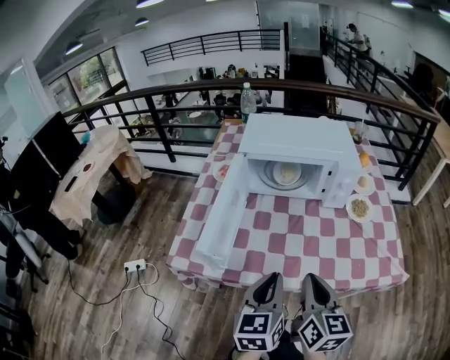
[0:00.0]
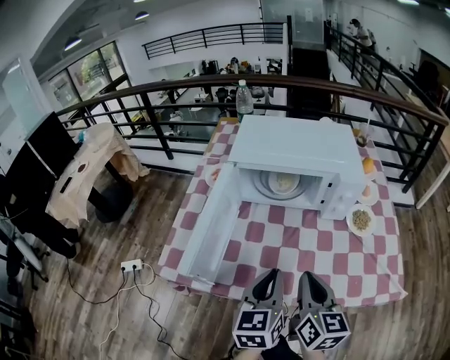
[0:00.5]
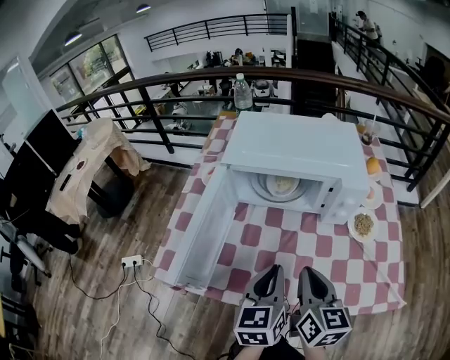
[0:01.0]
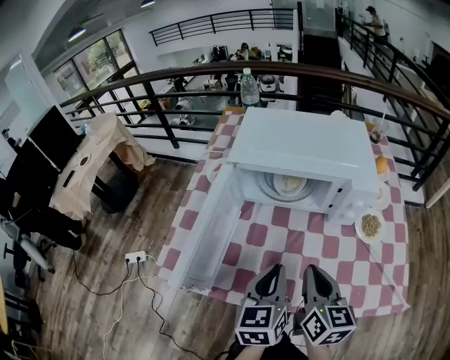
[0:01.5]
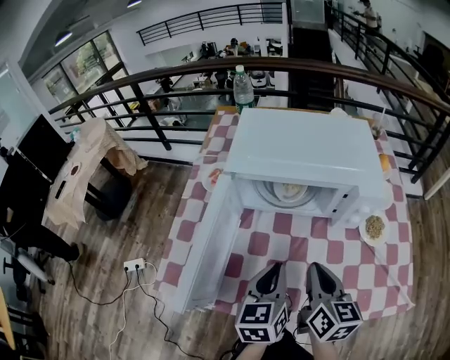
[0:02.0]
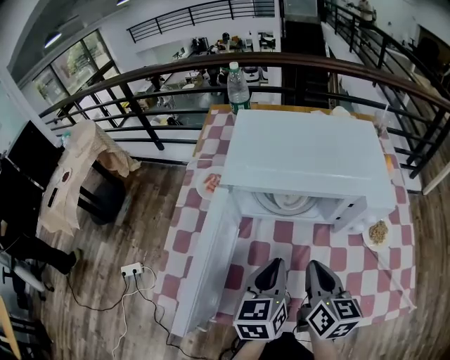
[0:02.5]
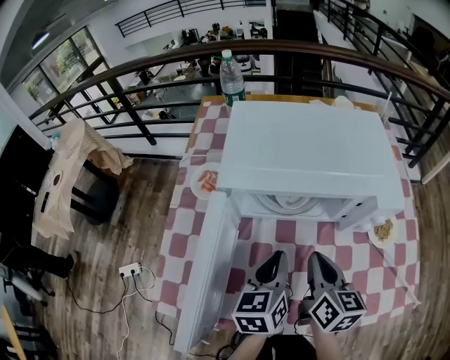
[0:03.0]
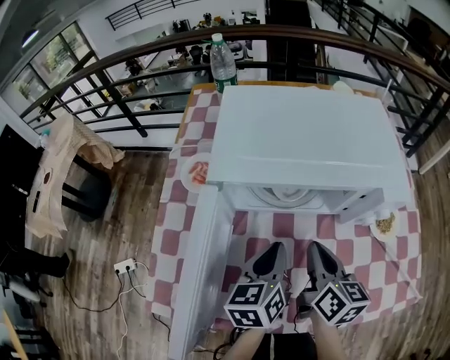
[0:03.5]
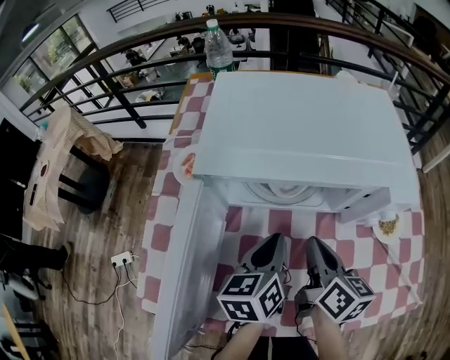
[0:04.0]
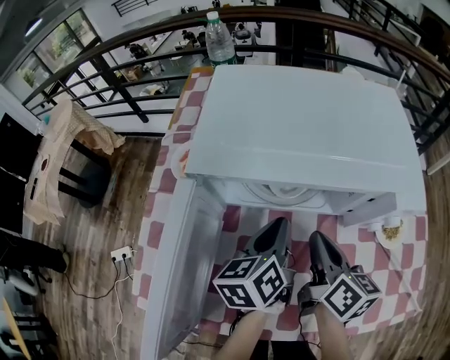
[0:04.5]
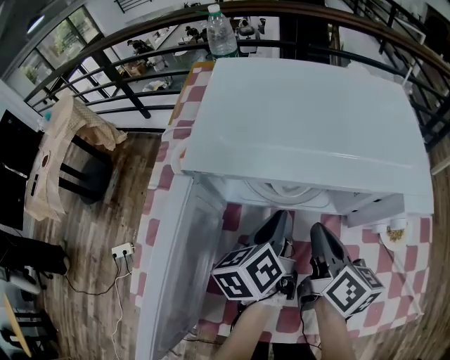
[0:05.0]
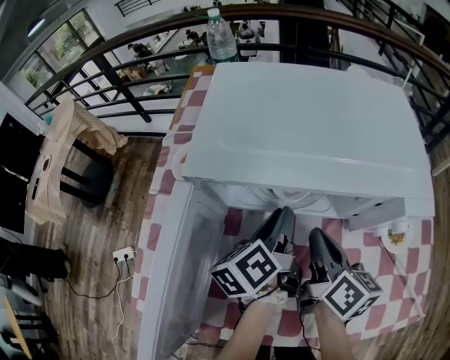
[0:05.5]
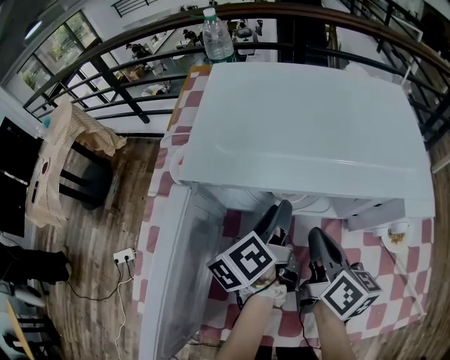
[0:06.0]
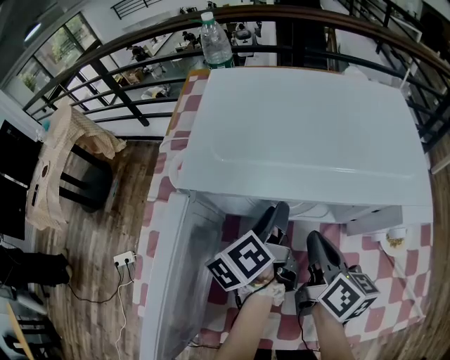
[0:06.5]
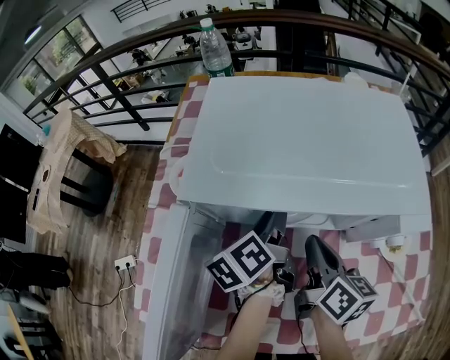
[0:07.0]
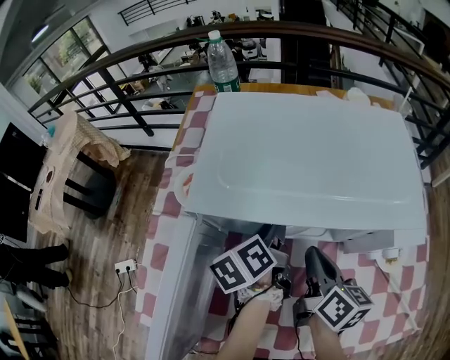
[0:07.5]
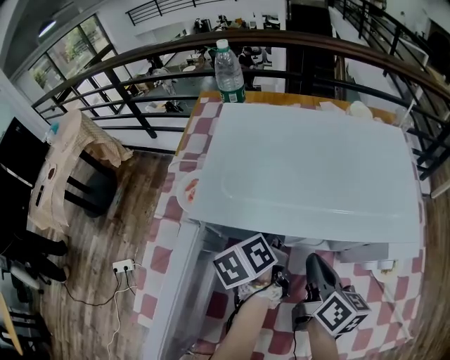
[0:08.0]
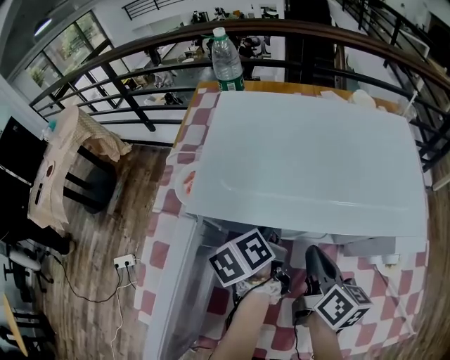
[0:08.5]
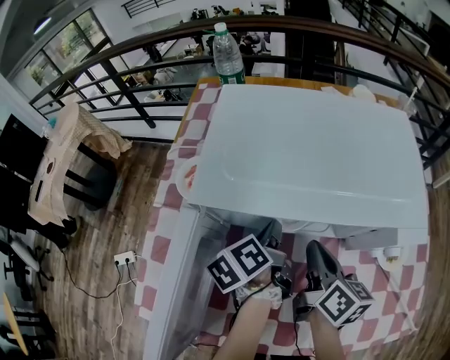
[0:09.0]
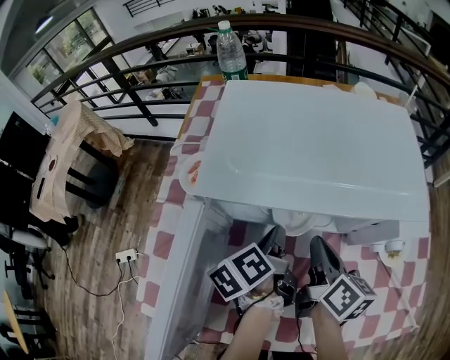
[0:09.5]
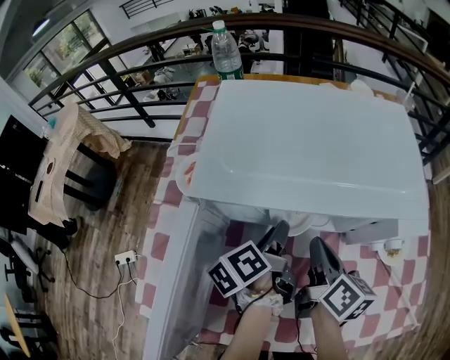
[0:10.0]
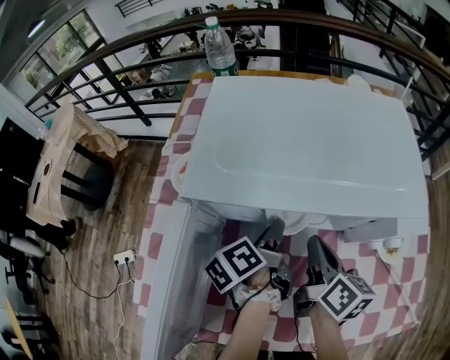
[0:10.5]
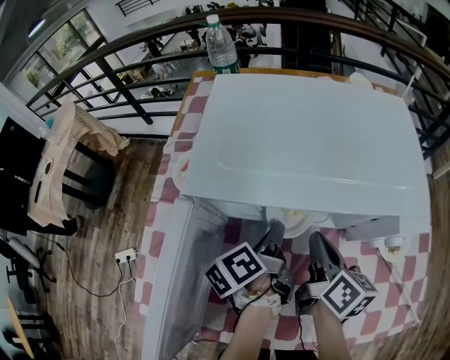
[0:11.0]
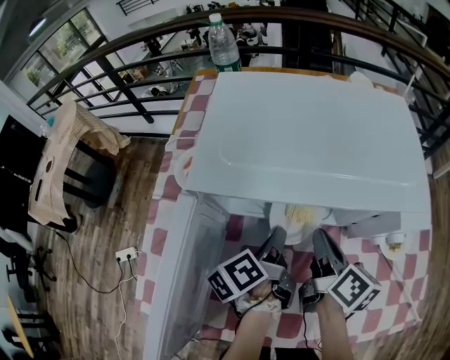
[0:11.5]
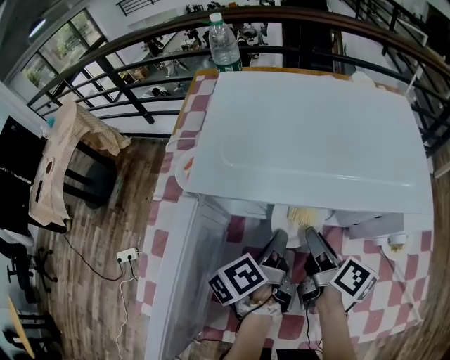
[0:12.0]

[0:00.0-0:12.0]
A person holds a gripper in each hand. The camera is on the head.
0:00.0 to 0:02.0: The two grippers go about 20 cm forward.
0:02.0 to 0:04.0: The two grippers go roughly 15 cm forward and downward.
0:04.0 to 0:06.0: The left gripper heads forward, covering some 10 cm, turns by approximately 30 degrees, and opens its fingers.
0:06.0 to 0:08.0: There are only small adjustments of the grippers.
0:08.0 to 0:10.0: The left gripper is displaced backward by some 5 cm, and closes, then opens again.
0:10.0 to 0:12.0: The left gripper closes, while the right gripper opens up.

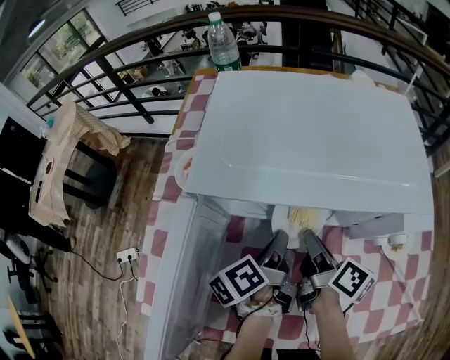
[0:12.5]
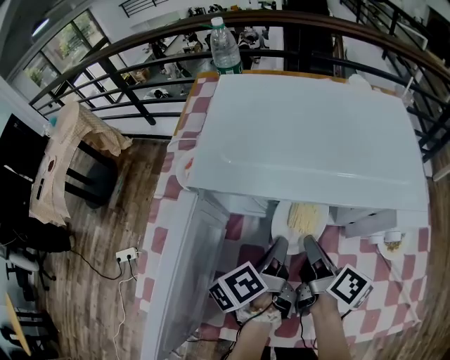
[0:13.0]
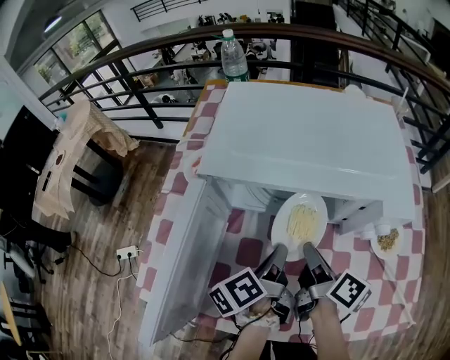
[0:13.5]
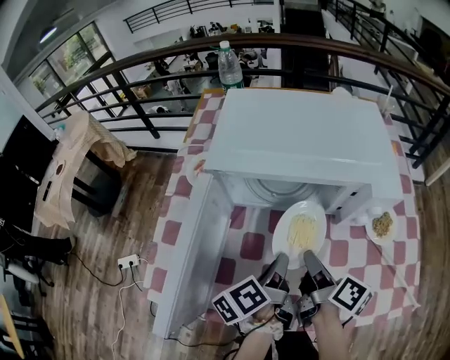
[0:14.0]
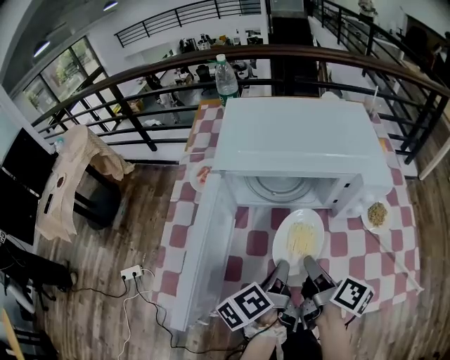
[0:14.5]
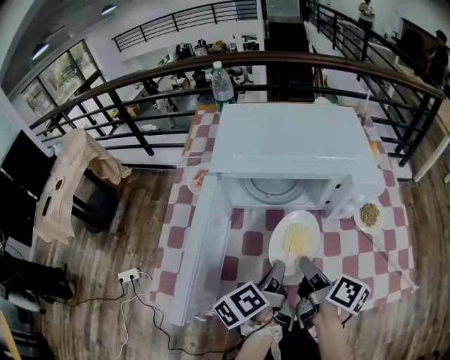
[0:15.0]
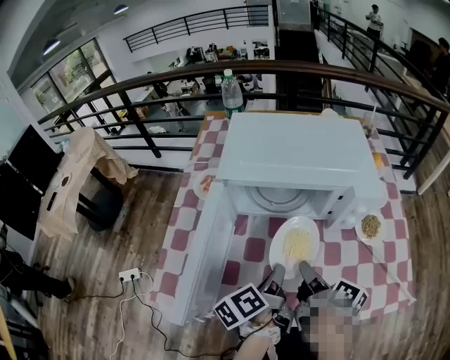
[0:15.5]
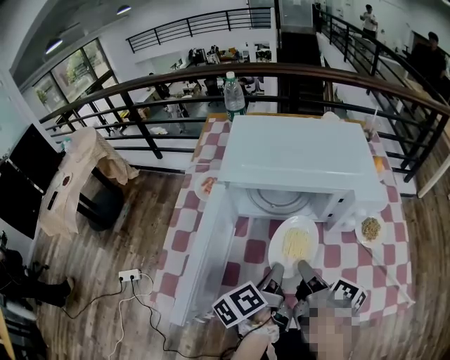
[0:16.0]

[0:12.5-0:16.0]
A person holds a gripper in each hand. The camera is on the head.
0:12.5 to 0:14.5: The two grippers go some 15 cm backward.
0:14.5 to 0:16.0: There are only small adjustments of the grippers.

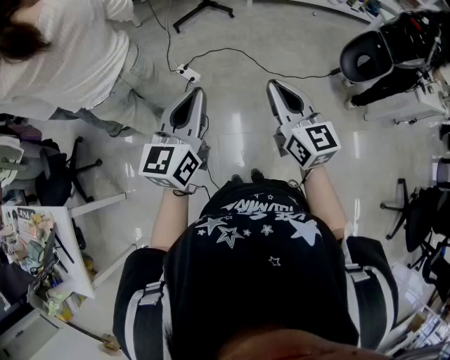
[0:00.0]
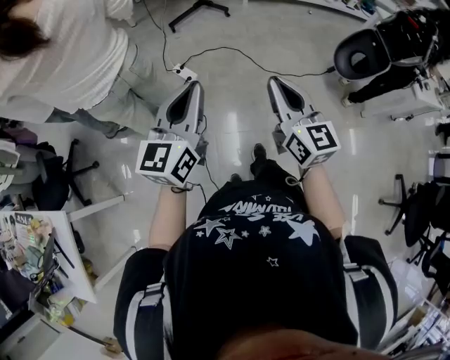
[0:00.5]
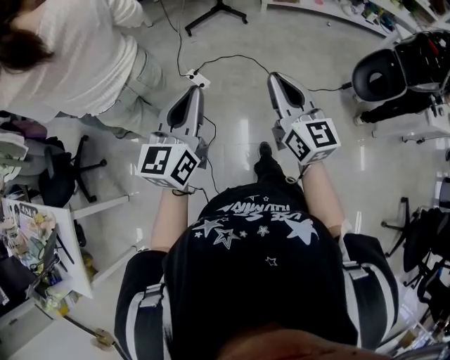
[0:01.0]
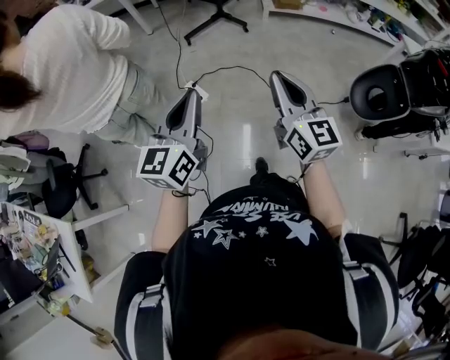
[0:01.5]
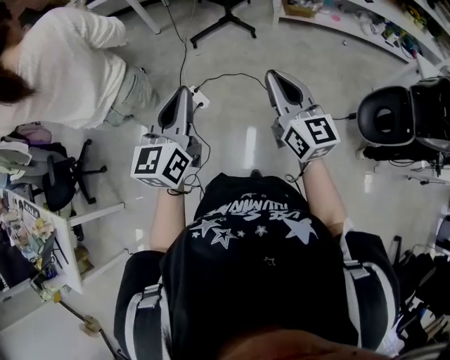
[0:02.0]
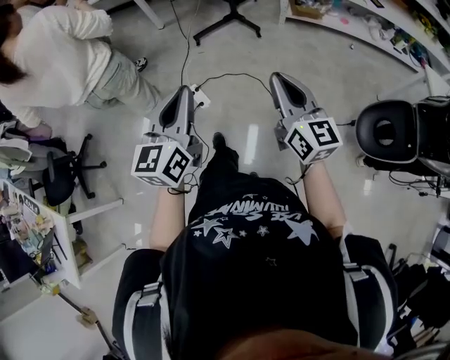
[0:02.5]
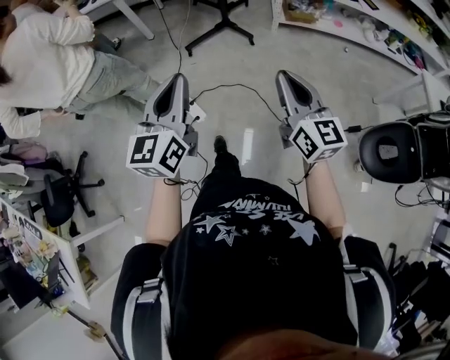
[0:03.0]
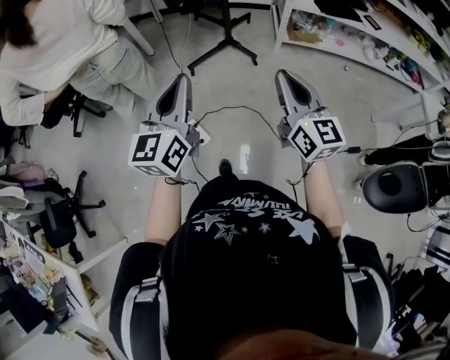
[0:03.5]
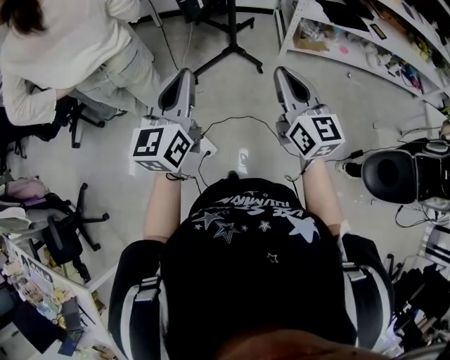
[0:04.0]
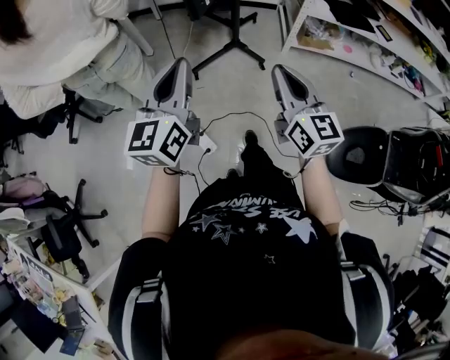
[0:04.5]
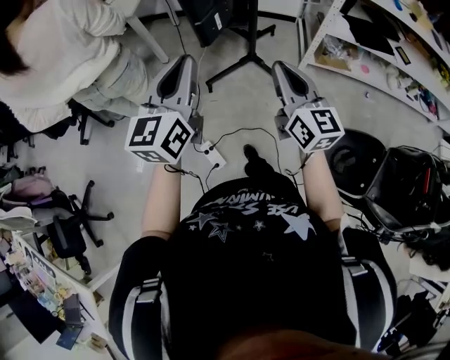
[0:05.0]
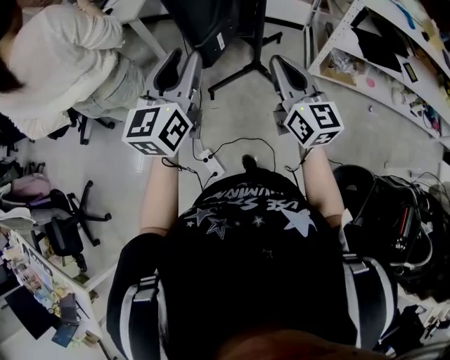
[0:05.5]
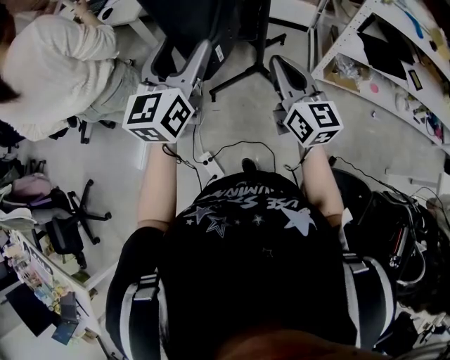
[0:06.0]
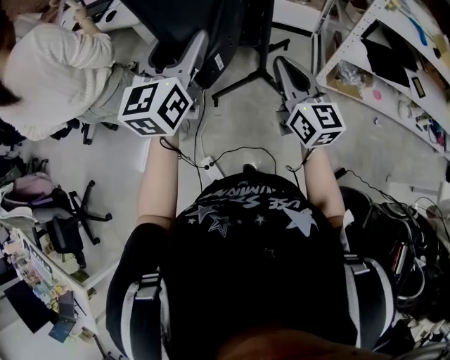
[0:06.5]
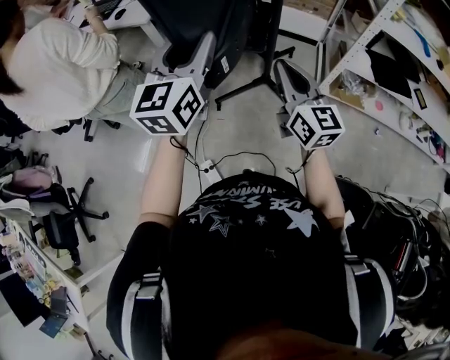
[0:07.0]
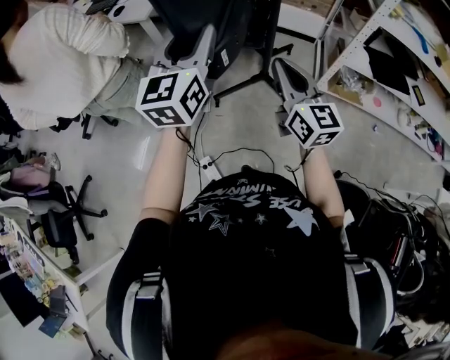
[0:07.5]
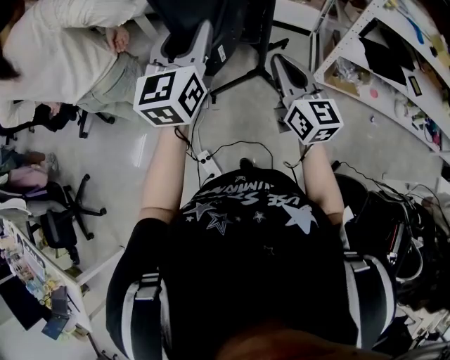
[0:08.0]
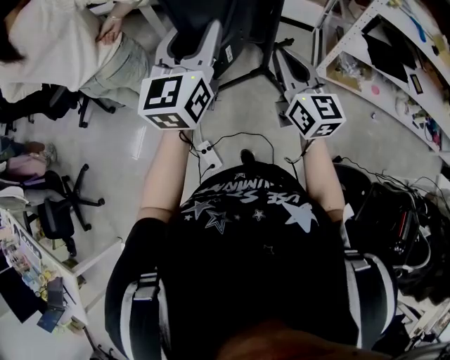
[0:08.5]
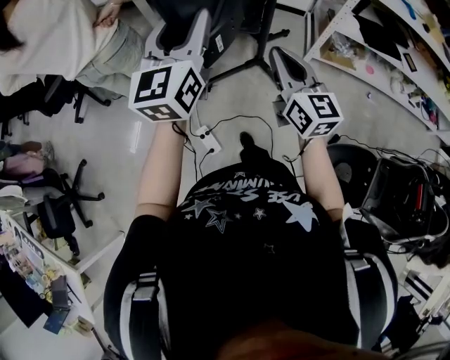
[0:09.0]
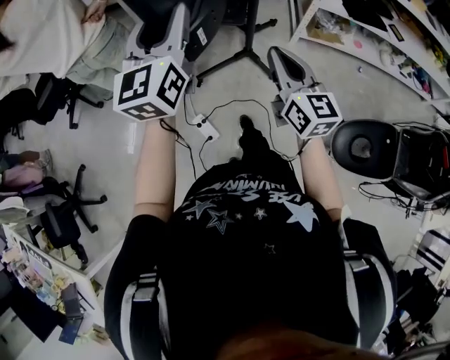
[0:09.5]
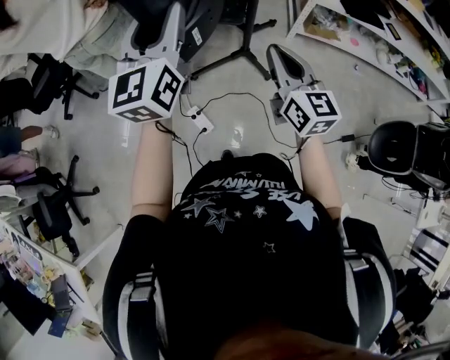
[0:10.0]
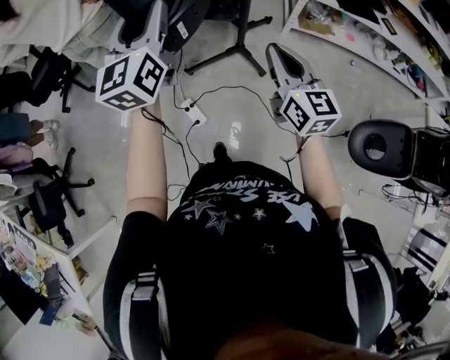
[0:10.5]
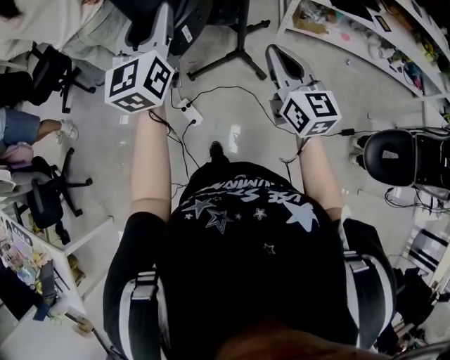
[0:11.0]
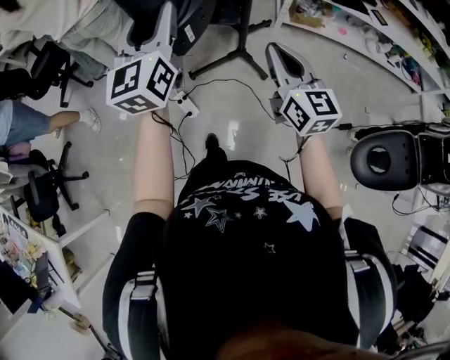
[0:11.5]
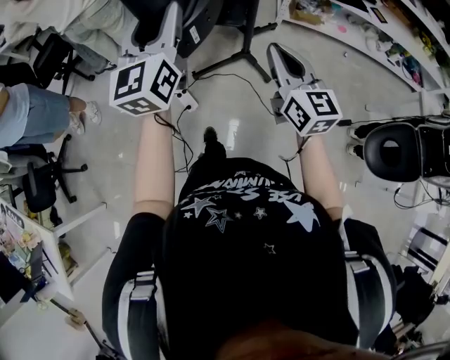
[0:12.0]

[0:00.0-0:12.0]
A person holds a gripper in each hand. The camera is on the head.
0:00.0 to 0:02.0: Both grippers travel together forward, some 25 cm.
0:02.0 to 0:04.0: Both grippers travel together forward, some 40 cm.
0:04.0 to 0:06.0: The grippers both shift forward by roughly 30 cm. The left gripper opens up.
0:06.0 to 0:08.0: The left gripper closes up.
0:08.0 to 0:10.0: The grippers both shift backward by some 25 cm.
0:10.0 to 0:12.0: The two grippers go approximately 20 cm backward and to the right.
